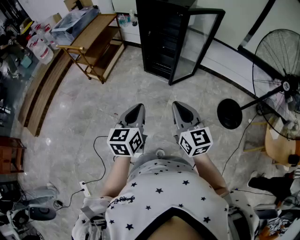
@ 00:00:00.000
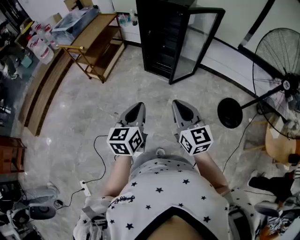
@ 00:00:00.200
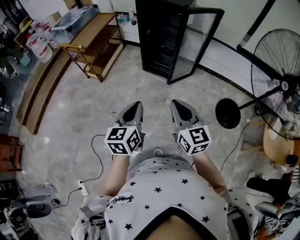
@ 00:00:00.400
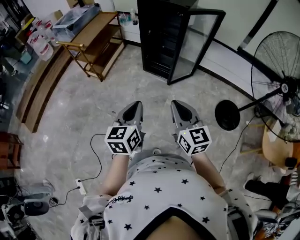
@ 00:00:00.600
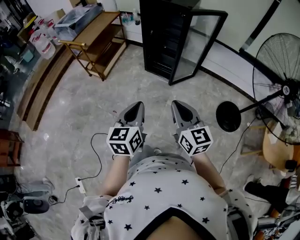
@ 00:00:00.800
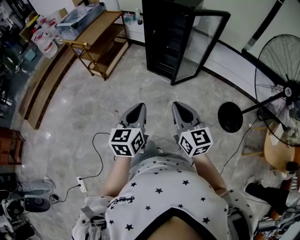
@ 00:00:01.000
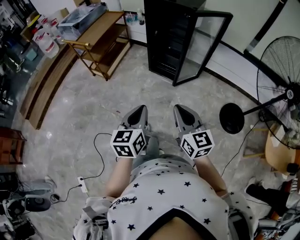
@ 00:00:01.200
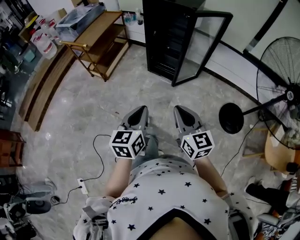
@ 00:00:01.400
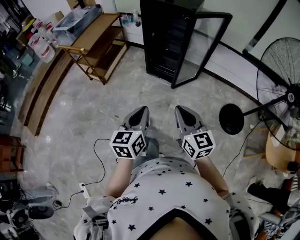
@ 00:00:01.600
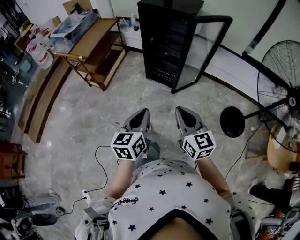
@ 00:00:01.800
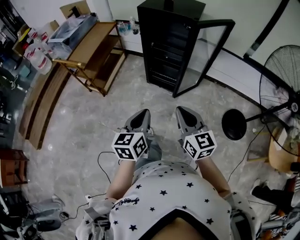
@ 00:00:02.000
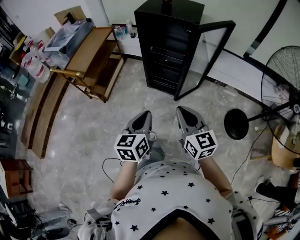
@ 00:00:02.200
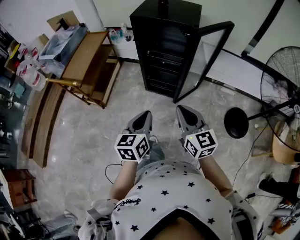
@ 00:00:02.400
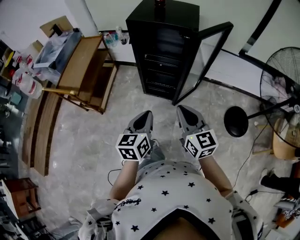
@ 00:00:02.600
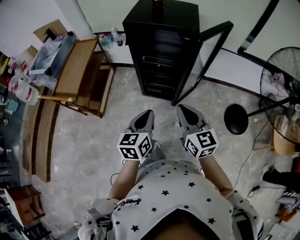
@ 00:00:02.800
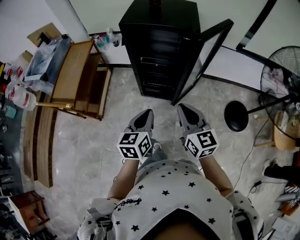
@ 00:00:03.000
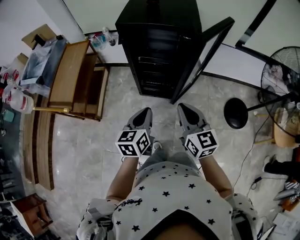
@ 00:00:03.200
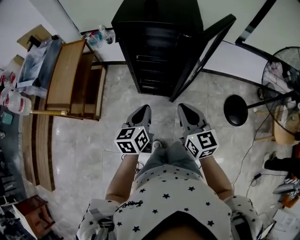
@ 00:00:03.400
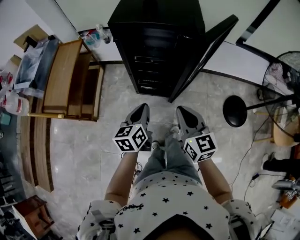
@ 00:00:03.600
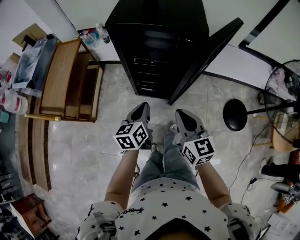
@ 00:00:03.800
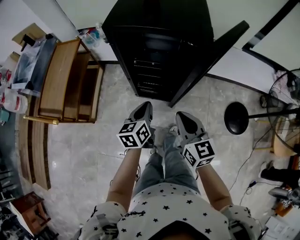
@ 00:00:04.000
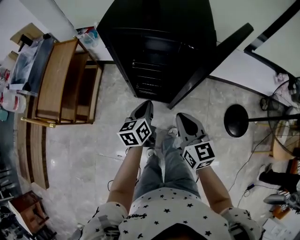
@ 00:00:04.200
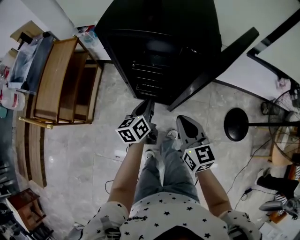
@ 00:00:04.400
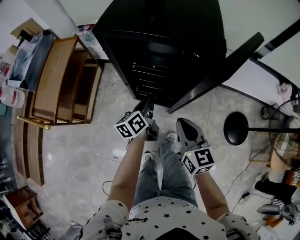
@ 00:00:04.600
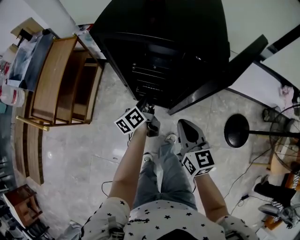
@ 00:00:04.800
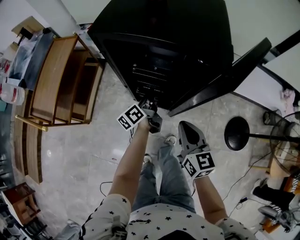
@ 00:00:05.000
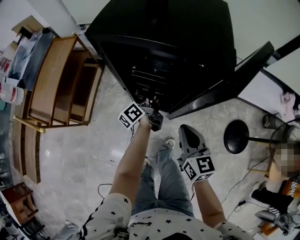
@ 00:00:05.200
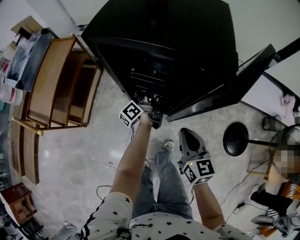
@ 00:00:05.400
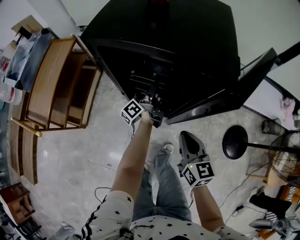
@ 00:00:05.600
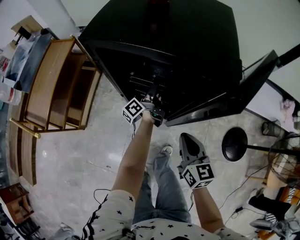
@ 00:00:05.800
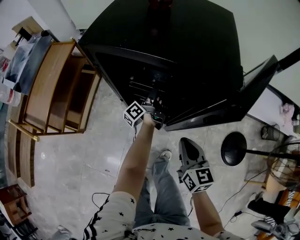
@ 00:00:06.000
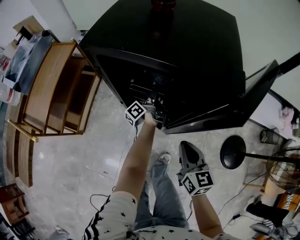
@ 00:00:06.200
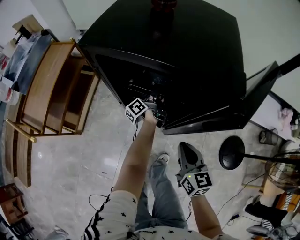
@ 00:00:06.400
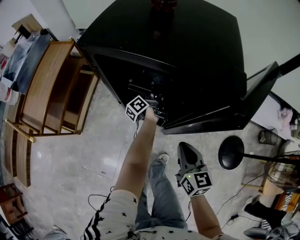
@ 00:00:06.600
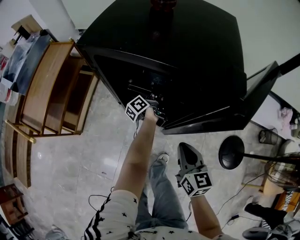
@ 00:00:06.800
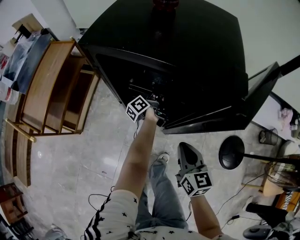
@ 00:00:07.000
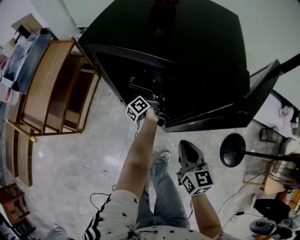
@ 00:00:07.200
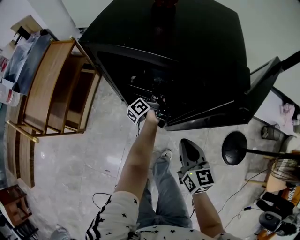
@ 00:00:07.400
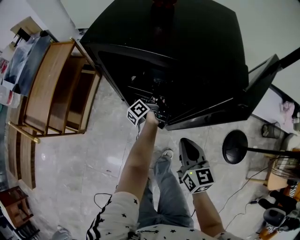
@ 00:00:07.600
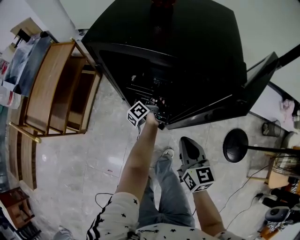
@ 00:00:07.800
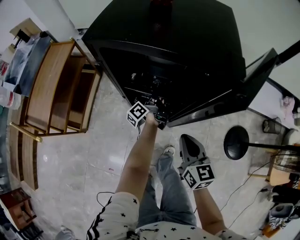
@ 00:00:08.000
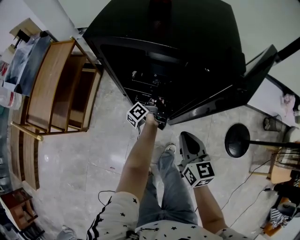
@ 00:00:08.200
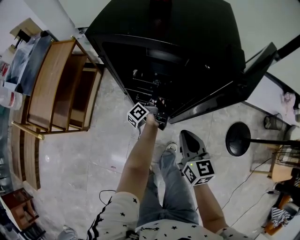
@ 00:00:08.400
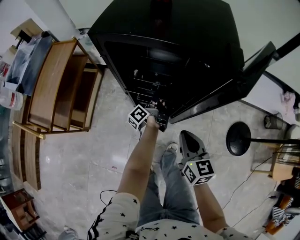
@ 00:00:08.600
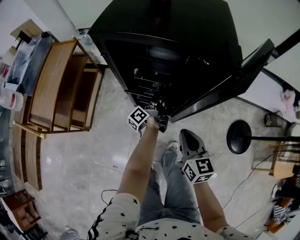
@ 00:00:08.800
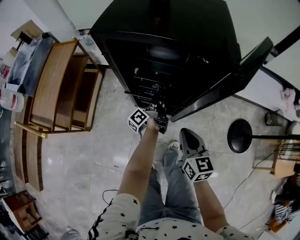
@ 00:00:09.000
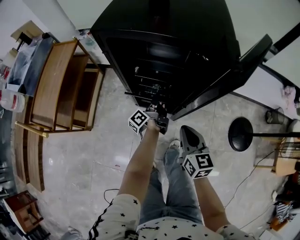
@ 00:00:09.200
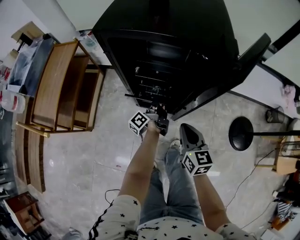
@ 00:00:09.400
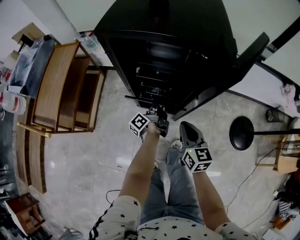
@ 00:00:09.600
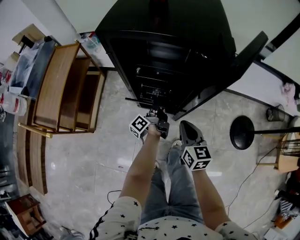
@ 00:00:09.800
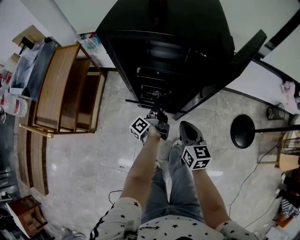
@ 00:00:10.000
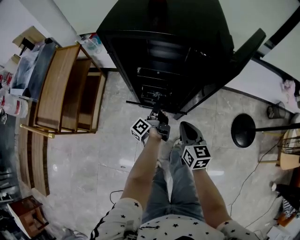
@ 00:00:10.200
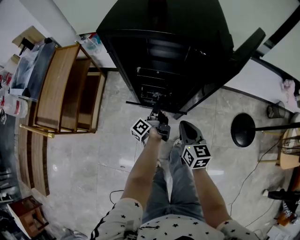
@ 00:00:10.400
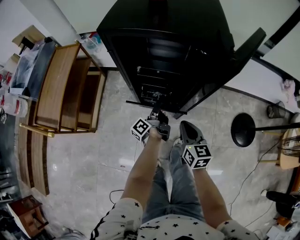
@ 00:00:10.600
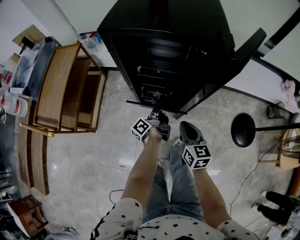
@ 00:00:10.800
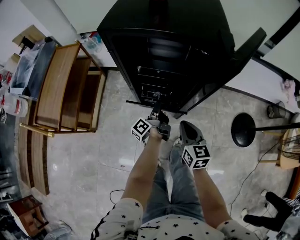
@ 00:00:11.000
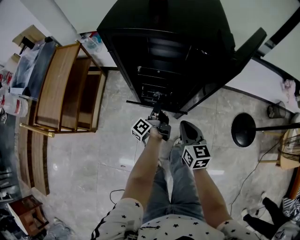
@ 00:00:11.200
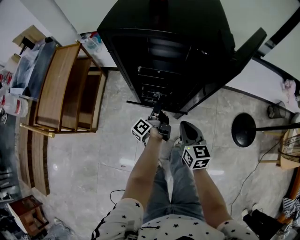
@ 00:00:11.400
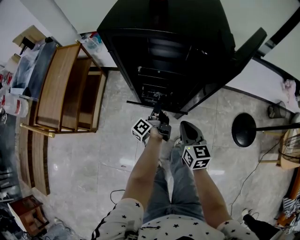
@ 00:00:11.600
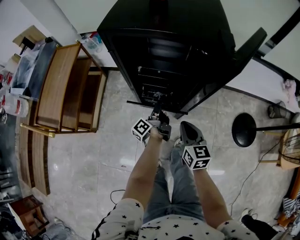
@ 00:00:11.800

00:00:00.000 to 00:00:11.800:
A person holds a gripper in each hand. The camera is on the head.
00:00:00.000 to 00:00:01.400: The grippers move only a little.
00:00:01.400 to 00:00:03.000: The two grippers go about 35 cm forward.
00:00:03.000 to 00:00:04.400: The two grippers go some 25 cm forward and downward.
00:00:04.400 to 00:00:06.000: The left gripper travels forward and downward by about 25 cm, rolls counterclockwise, seen from behind, by about 50 degrees, and opens its fingers. The right gripper is displaced downward, forward and to the right by approximately 10 cm.
00:00:06.000 to 00:00:07.400: The left gripper closes its fingers.
00:00:07.400 to 00:00:08.800: The left gripper shifts approximately 10 cm backward.
00:00:08.800 to 00:00:10.400: The left gripper shifts about 10 cm backward.
00:00:10.400 to 00:00:11.800: Neither gripper changes place.

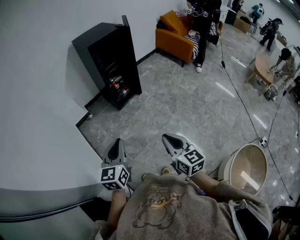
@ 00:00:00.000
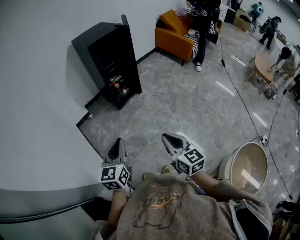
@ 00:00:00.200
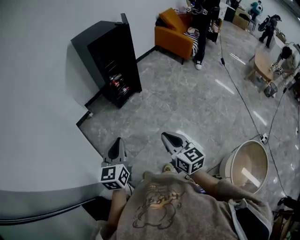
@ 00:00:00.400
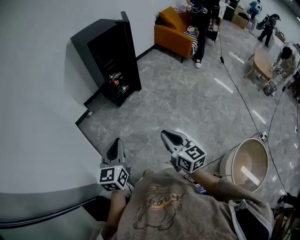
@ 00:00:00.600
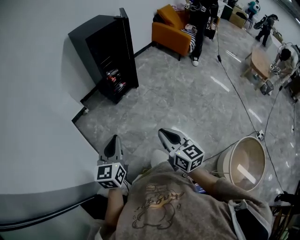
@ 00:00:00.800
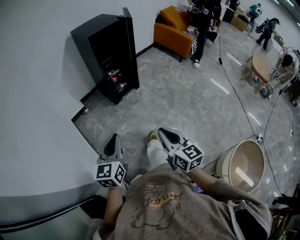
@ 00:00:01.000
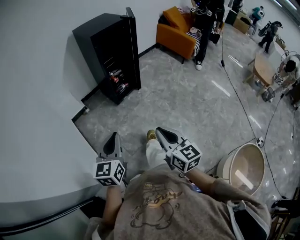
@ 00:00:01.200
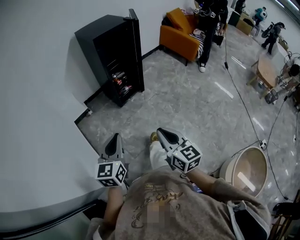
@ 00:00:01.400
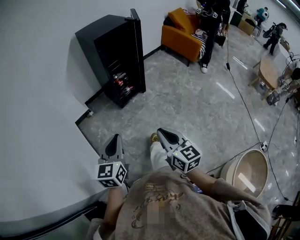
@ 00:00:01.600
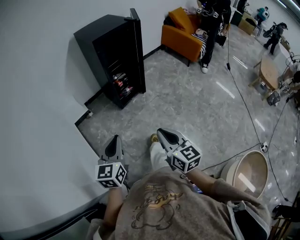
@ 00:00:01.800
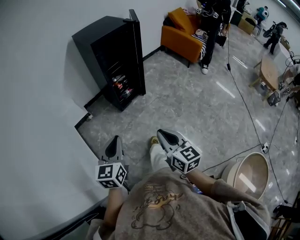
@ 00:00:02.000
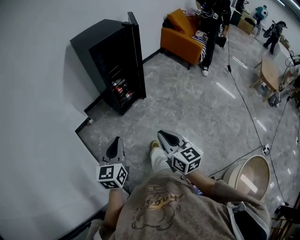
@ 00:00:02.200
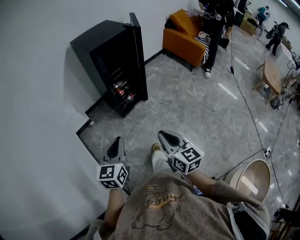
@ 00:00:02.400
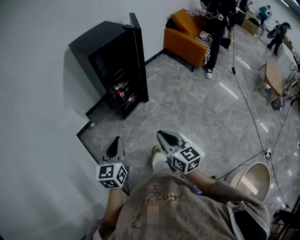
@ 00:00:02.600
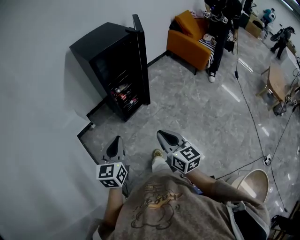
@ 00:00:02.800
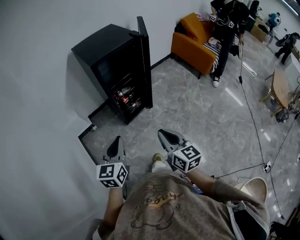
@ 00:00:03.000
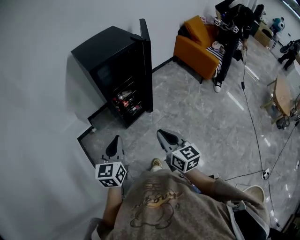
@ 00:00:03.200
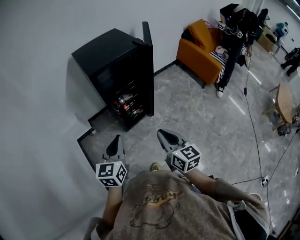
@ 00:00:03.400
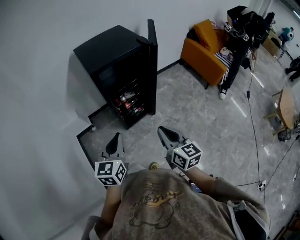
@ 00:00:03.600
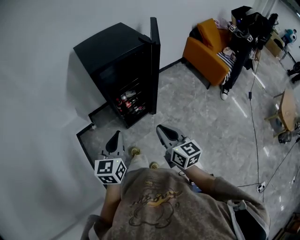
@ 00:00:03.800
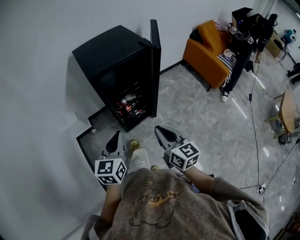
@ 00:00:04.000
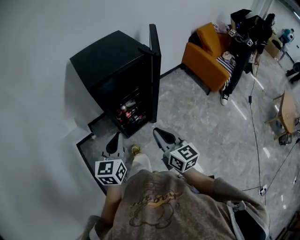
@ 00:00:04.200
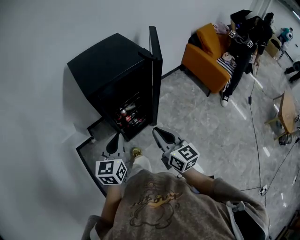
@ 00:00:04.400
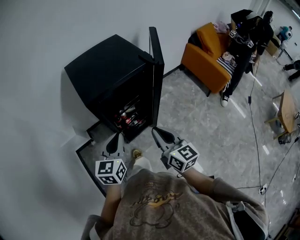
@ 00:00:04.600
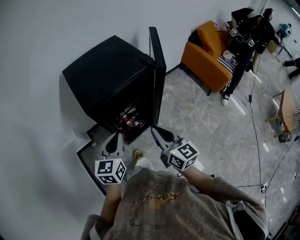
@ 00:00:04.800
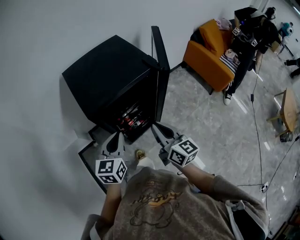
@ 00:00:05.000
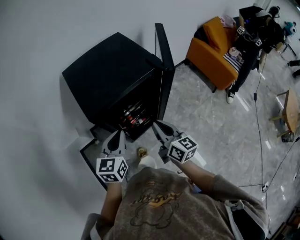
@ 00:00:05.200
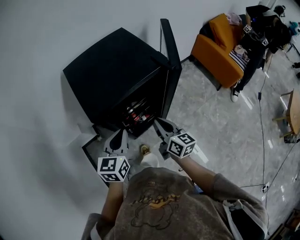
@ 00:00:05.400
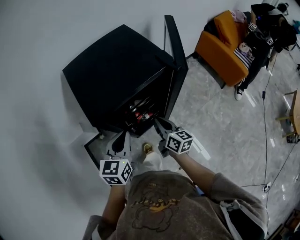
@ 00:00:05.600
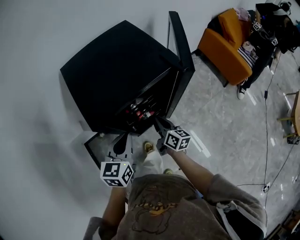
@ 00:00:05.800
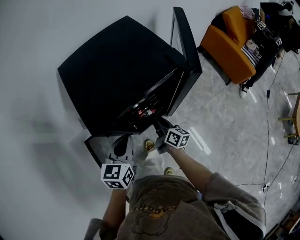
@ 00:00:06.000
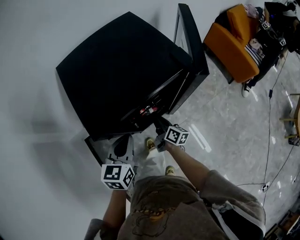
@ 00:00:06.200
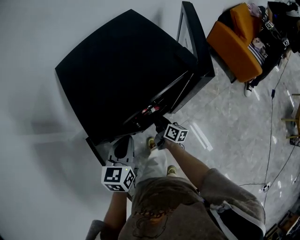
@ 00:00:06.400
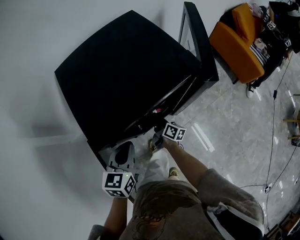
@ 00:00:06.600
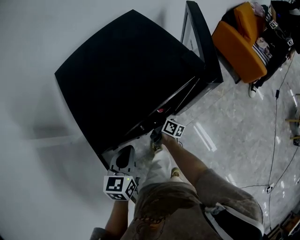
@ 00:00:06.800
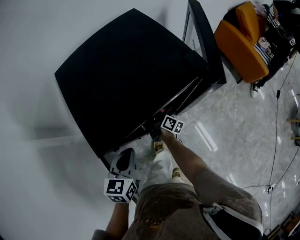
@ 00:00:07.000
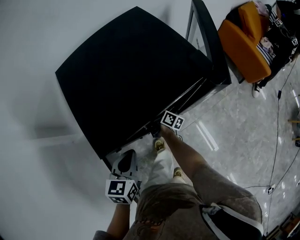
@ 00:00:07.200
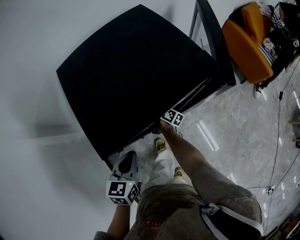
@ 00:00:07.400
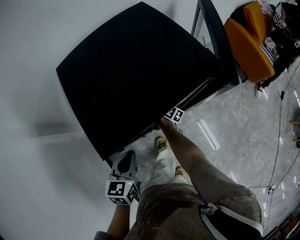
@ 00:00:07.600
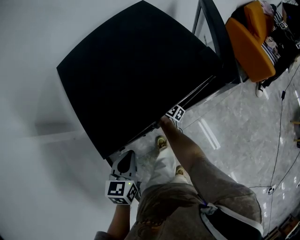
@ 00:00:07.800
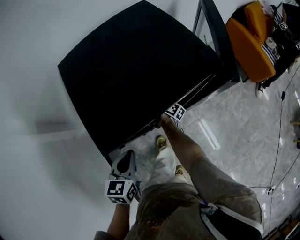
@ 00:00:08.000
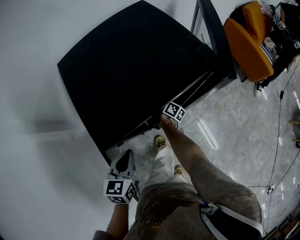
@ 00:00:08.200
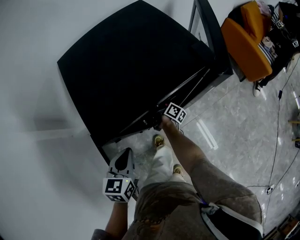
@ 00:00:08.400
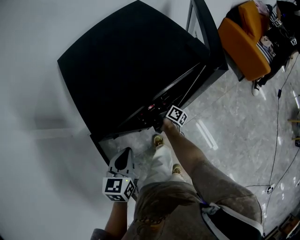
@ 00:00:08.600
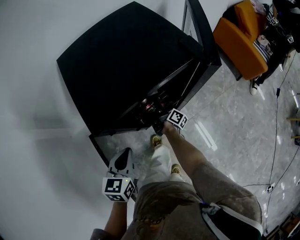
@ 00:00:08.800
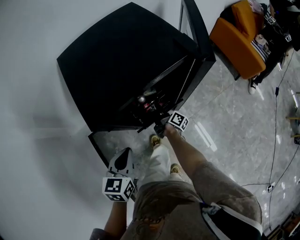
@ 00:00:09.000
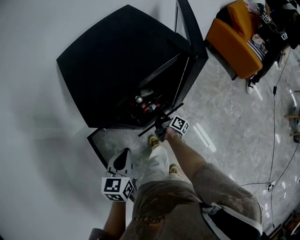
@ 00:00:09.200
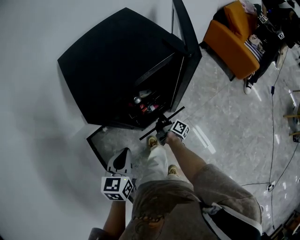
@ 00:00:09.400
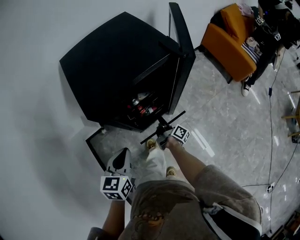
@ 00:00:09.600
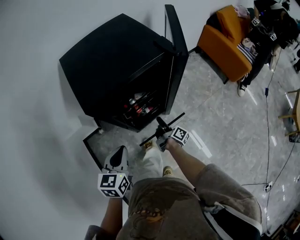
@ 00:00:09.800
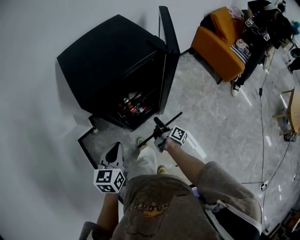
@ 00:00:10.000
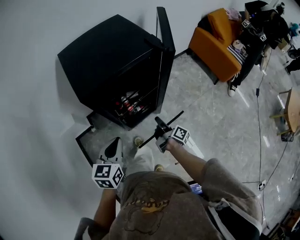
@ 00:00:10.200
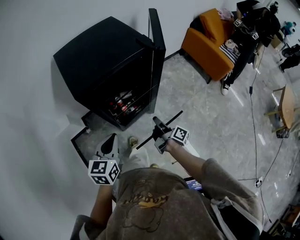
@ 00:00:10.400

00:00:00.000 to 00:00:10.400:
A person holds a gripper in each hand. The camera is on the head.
00:00:00.000 to 00:00:01.400: The right gripper is displaced forward and to the left by roughly 10 cm. The left gripper shifts roughly 5 cm forward.
00:00:01.400 to 00:00:03.000: The grippers both shift forward by approximately 25 cm.
00:00:03.000 to 00:00:04.400: The two grippers go roughly 25 cm forward.
00:00:04.400 to 00:00:06.000: The left gripper heads forward and downward, covering some 15 cm. The right gripper is displaced forward and downward by about 35 cm, and swivels approximately 40 degrees.
00:00:06.000 to 00:00:07.400: The left gripper shifts approximately 5 cm downward; the right gripper travels forward, downward and to the left by approximately 20 cm, and opens its fingers.
00:00:07.400 to 00:00:09.000: The left gripper goes roughly 5 cm backward; the right gripper goes roughly 10 cm backward and to the right, and closes its fingers.
00:00:09.000 to 00:00:10.400: The left gripper is displaced backward, to the right and upward by roughly 10 cm. The right gripper shifts roughly 25 cm backward, upward and to the right.

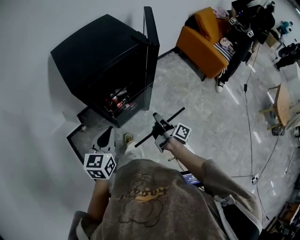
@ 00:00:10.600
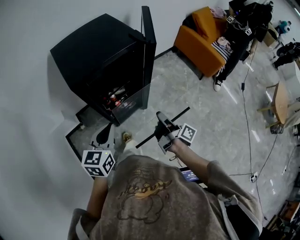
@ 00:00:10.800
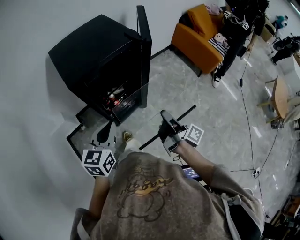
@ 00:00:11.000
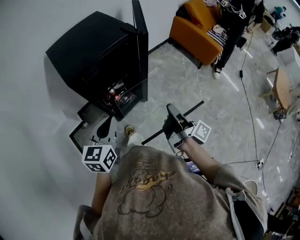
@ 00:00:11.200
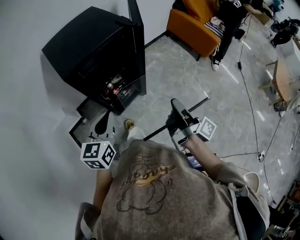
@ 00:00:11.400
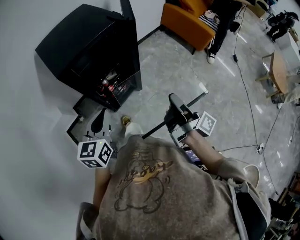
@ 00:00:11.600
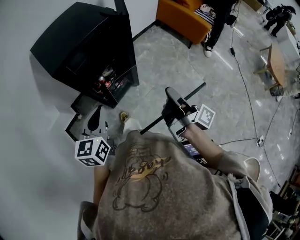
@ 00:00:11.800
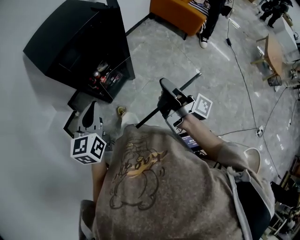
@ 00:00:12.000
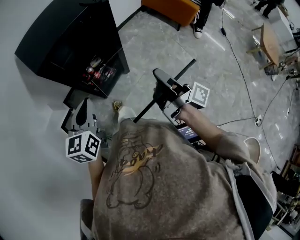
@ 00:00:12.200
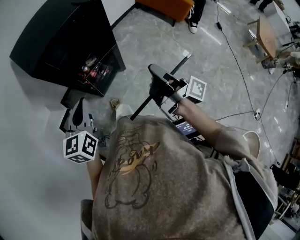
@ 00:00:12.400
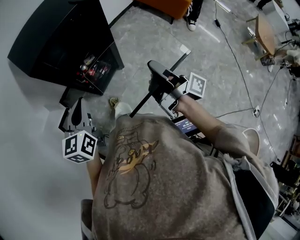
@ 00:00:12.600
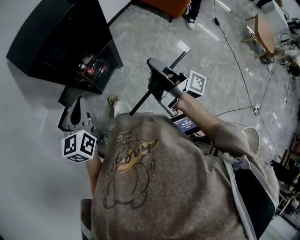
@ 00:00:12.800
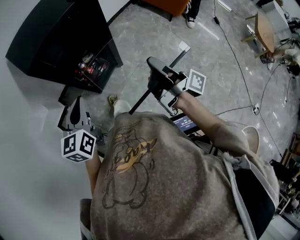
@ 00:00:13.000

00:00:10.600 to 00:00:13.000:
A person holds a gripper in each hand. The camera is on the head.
00:00:10.600 to 00:00:11.800: The left gripper shifts by some 5 cm. The right gripper travels upward, backward and to the right by roughly 20 cm.
00:00:11.800 to 00:00:13.000: The grippers stay close to where they were, moving slightly.
